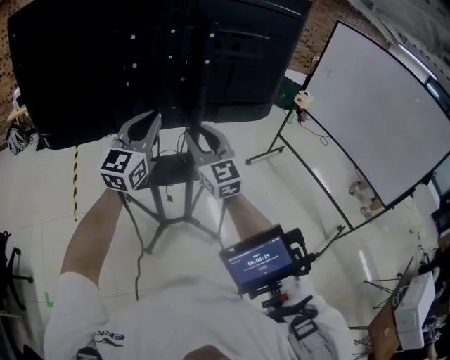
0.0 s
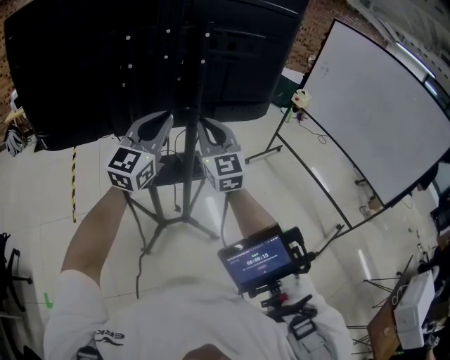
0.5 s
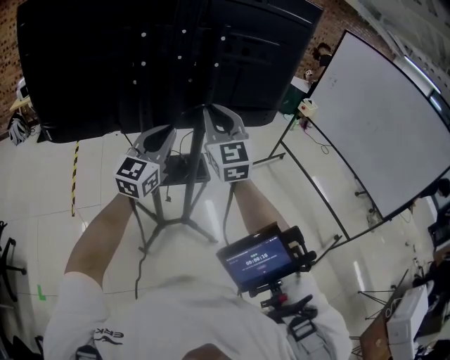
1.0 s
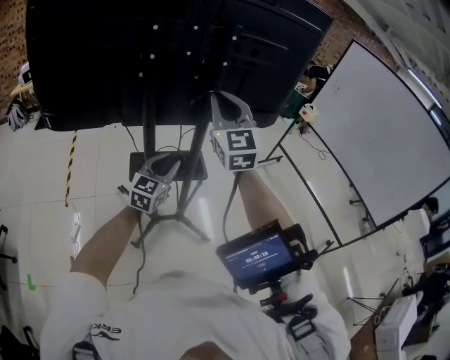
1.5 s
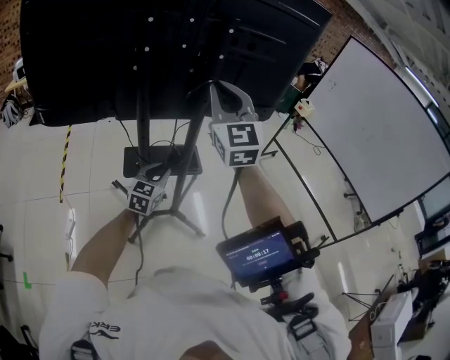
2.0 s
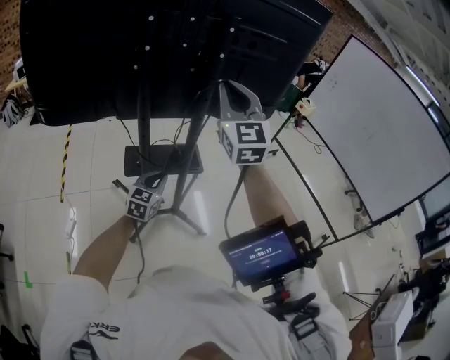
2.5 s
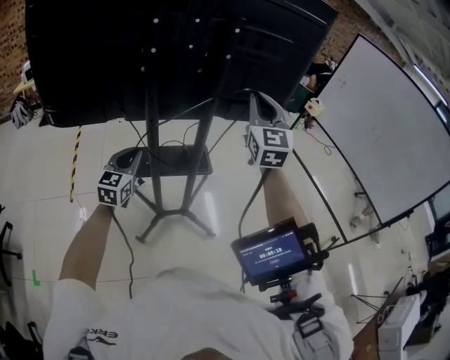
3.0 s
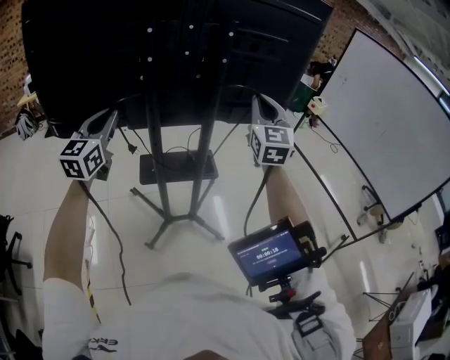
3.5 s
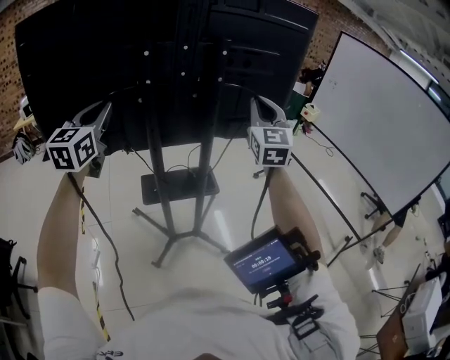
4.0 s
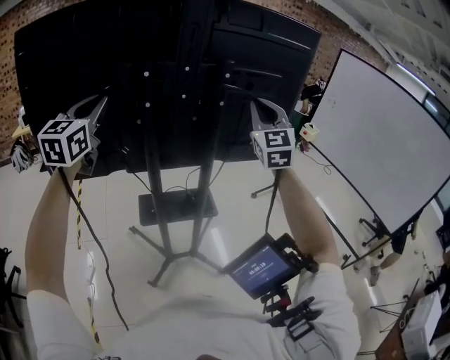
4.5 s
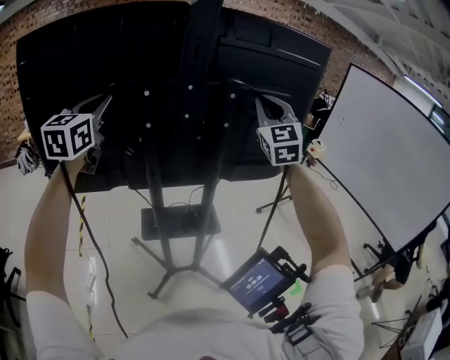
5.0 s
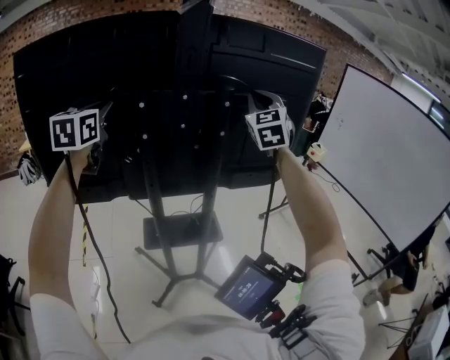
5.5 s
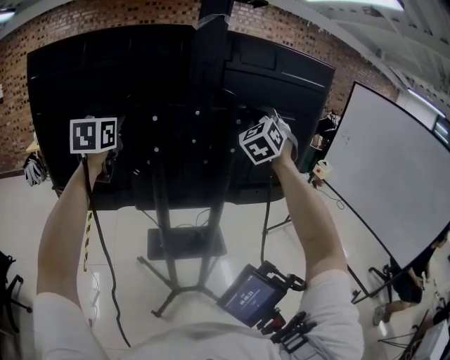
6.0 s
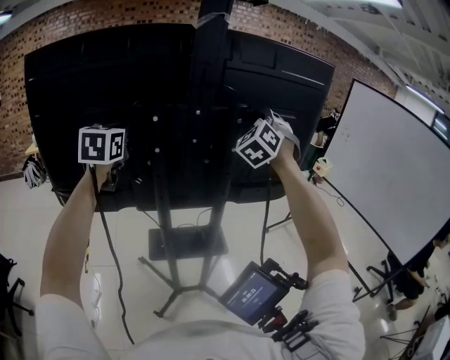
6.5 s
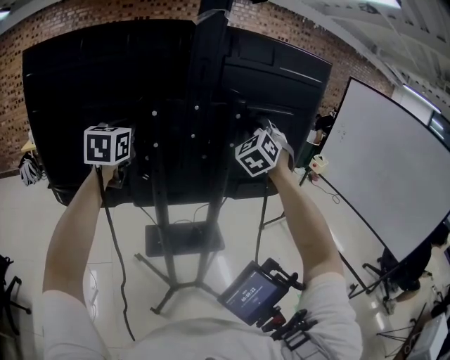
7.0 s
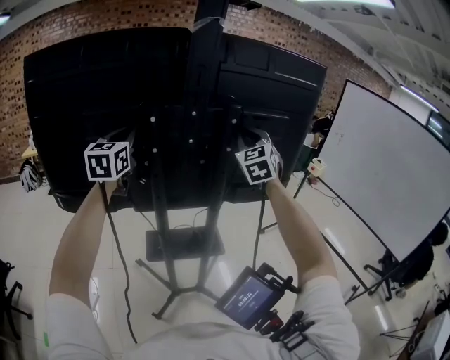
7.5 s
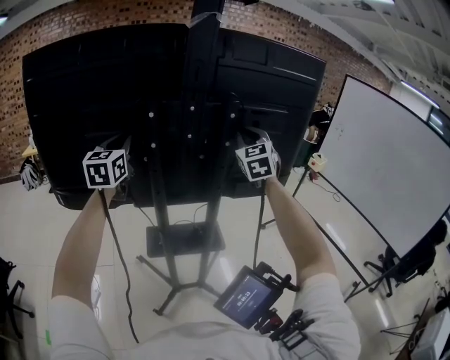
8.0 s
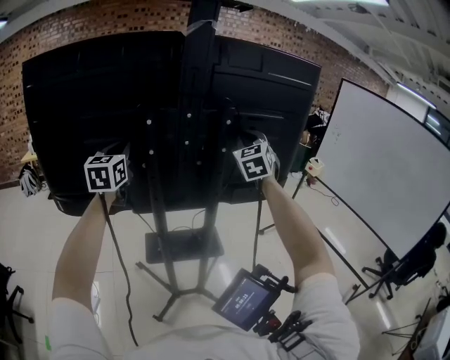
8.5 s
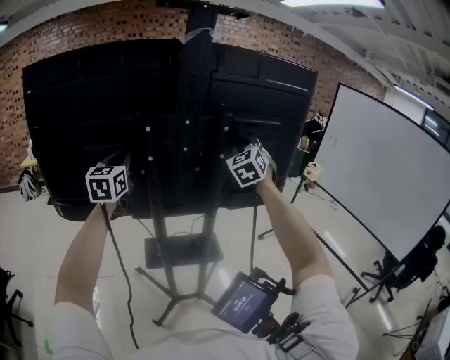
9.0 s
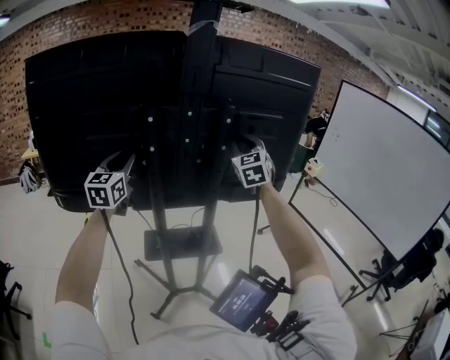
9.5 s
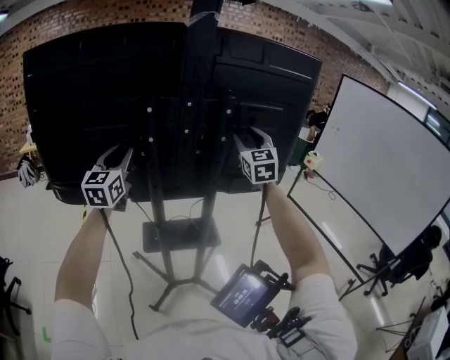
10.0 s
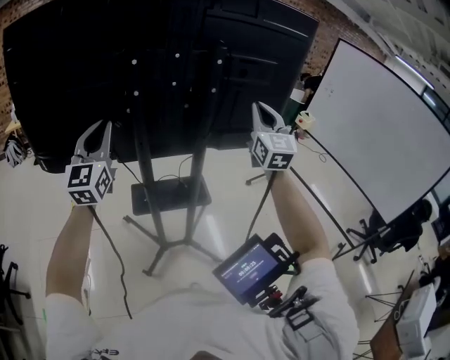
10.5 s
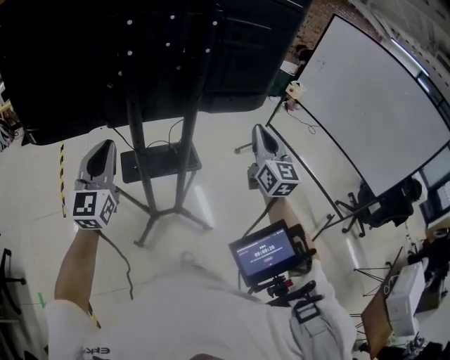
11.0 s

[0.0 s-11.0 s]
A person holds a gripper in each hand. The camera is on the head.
0.0 to 2.0 s: The right gripper travels upward by roughly 10 cm, and closes up. The left gripper is displaced downward by roughly 30 cm, and swivels about 30 degrees.
2.0 to 3.5 s: The right gripper shifts approximately 10 cm to the right. Meanwhile the left gripper goes approximately 30 cm upward and to the left, and changes its angle by roughly 20 degrees.
3.5 to 5.5 s: The right gripper goes approximately 20 cm forward and upward. The left gripper goes some 20 cm upward and forward.
5.5 to 7.5 s: The left gripper shifts by roughly 5 cm. Meanwhile the right gripper goes some 10 cm downward.
7.5 to 9.0 s: The grippers stay close to where they were, moving slightly.
9.0 to 11.0 s: The right gripper travels backward, downward and to the right by about 30 cm, rolls clockwise, seen from behind, by roughly 40 degrees, and opens, then closes once more. Meanwhile the left gripper shifts approximately 25 cm backward and downward.

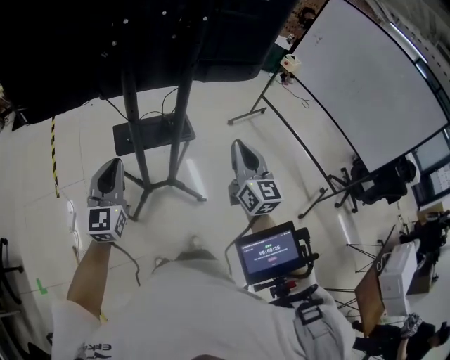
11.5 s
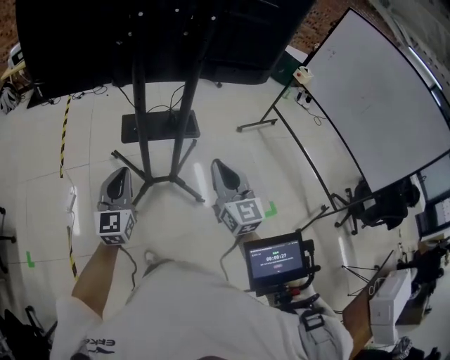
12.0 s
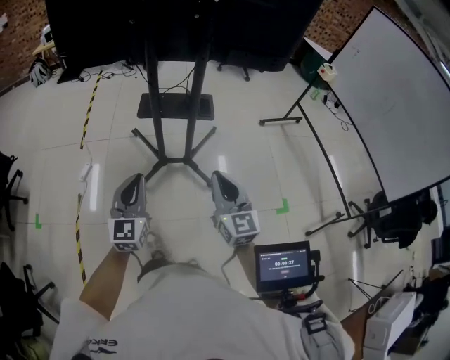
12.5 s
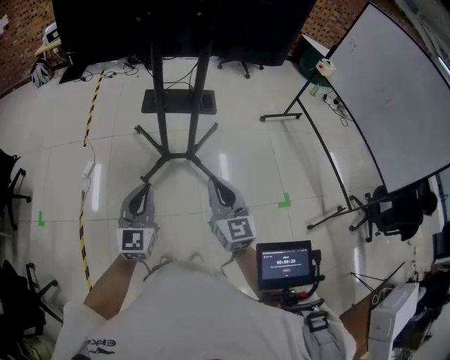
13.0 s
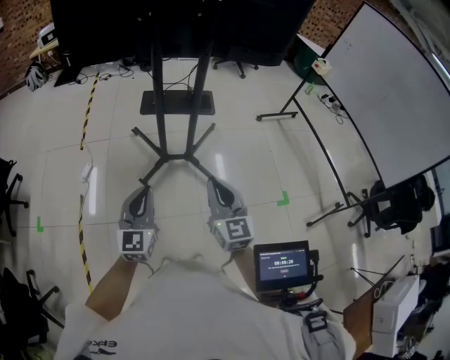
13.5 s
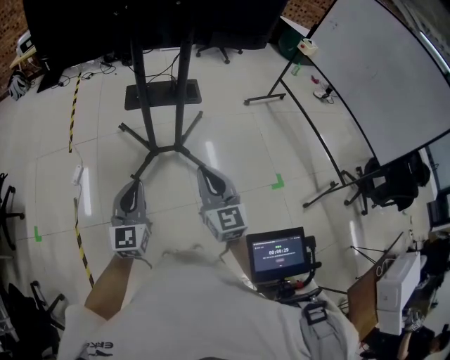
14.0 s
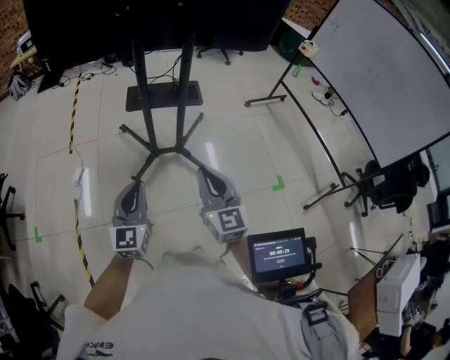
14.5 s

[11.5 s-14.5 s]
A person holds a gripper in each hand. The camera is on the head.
11.5 to 13.0 s: The grippers both shift backward by roughly 25 cm.
13.0 to 14.5 s: The grippers move only a little.

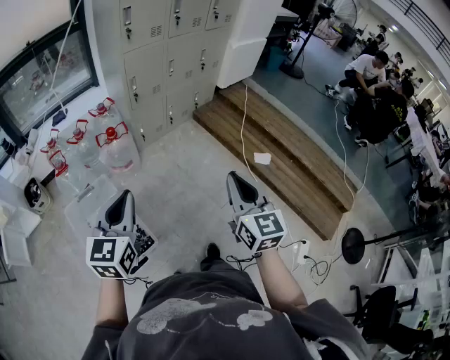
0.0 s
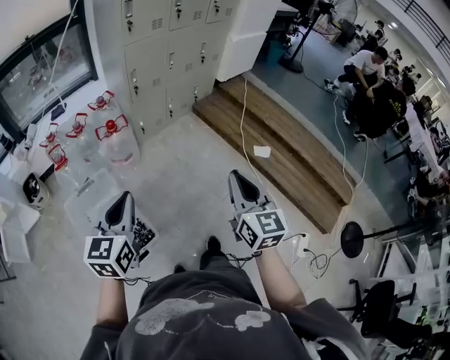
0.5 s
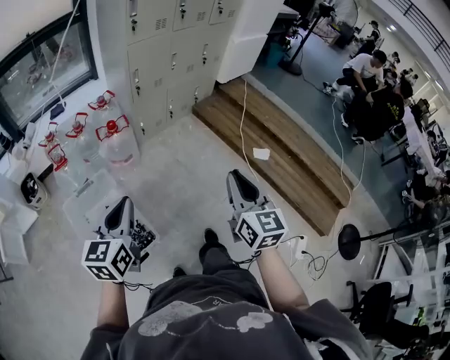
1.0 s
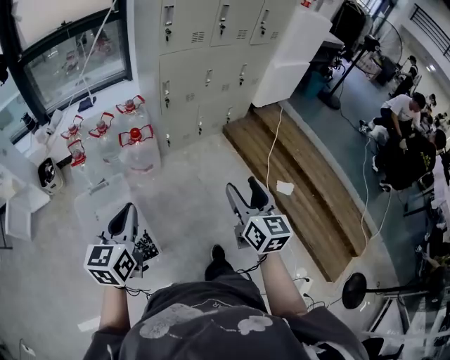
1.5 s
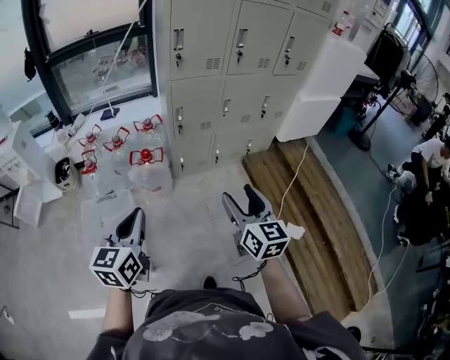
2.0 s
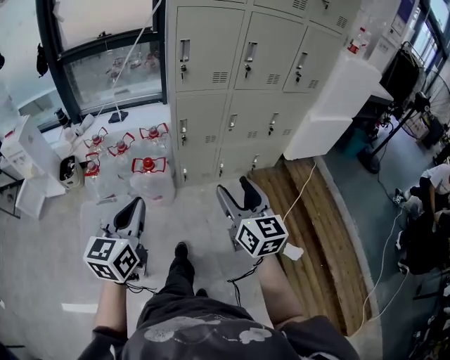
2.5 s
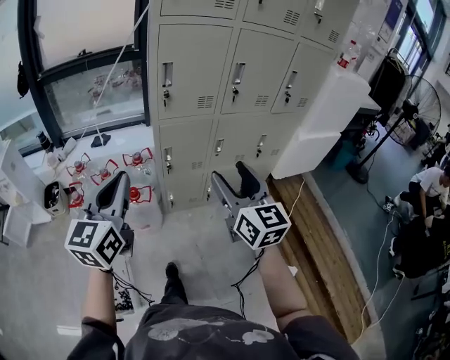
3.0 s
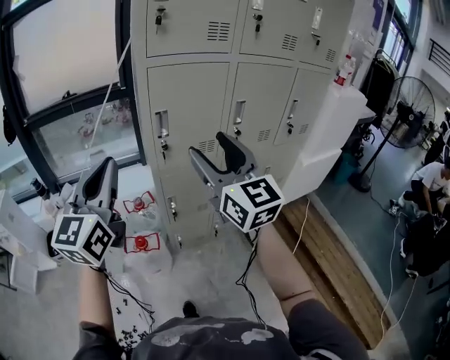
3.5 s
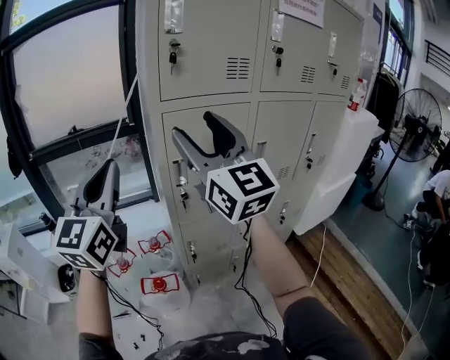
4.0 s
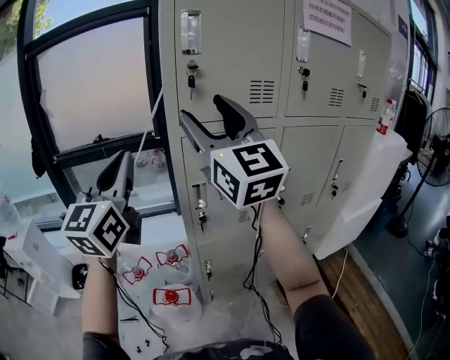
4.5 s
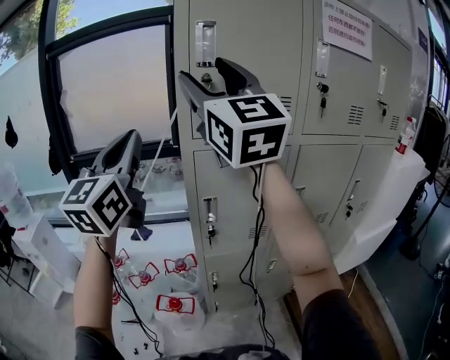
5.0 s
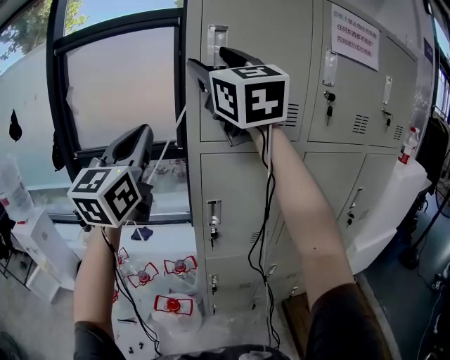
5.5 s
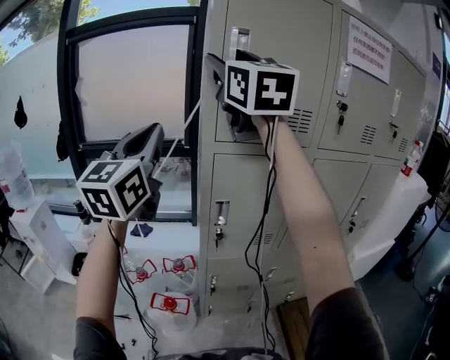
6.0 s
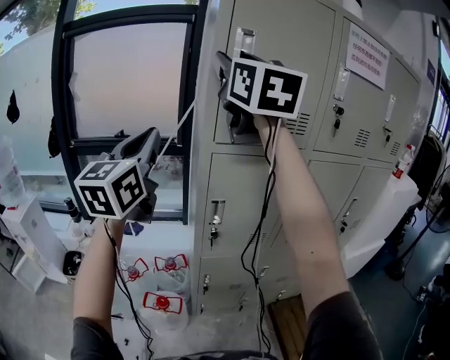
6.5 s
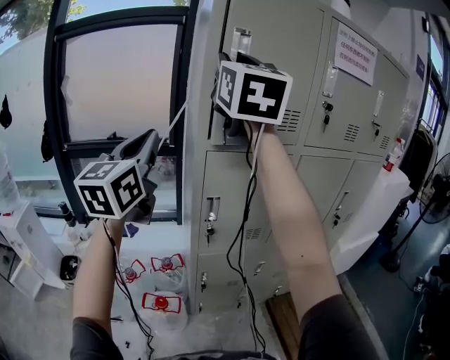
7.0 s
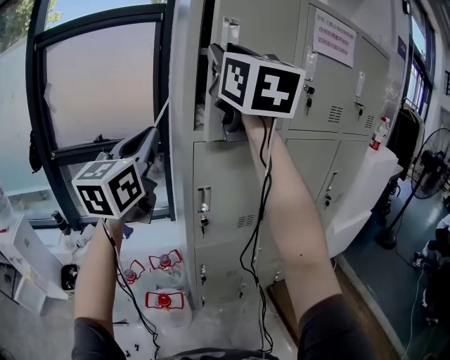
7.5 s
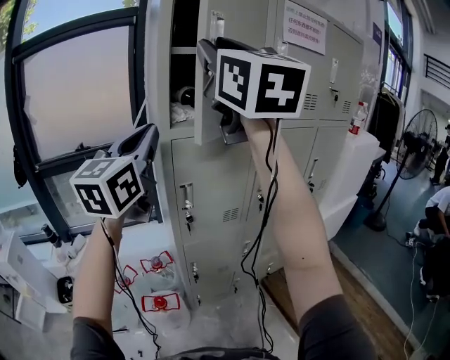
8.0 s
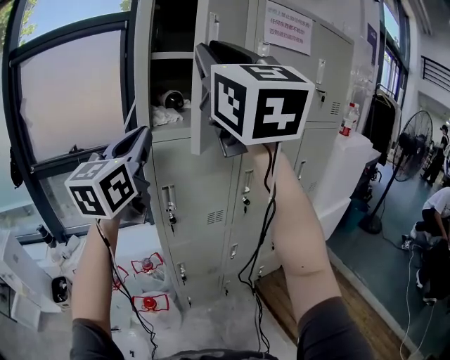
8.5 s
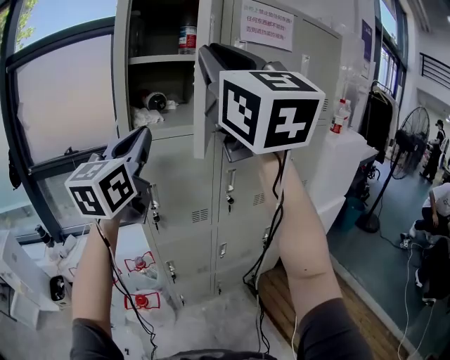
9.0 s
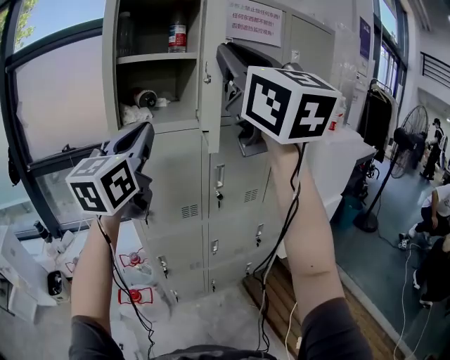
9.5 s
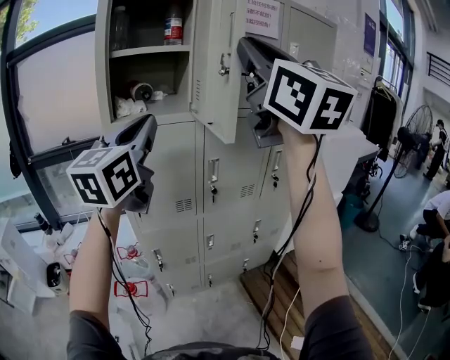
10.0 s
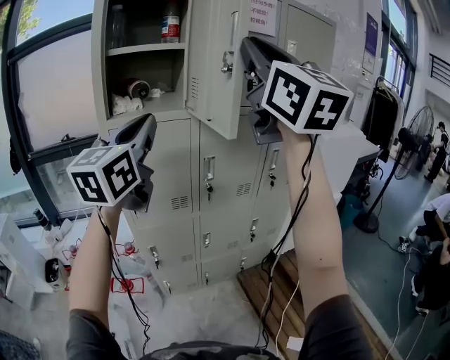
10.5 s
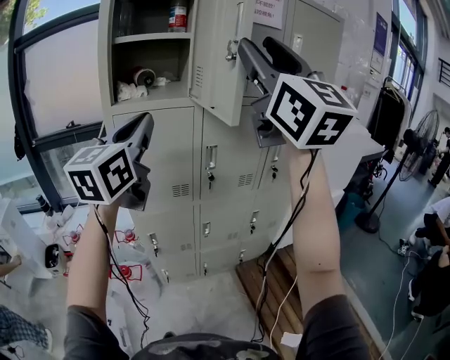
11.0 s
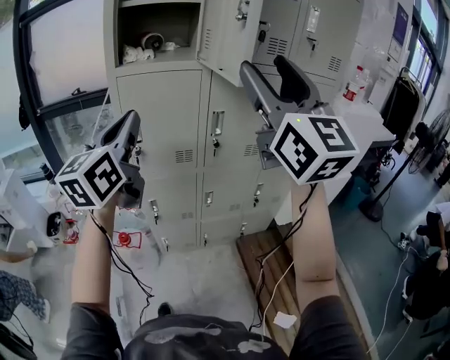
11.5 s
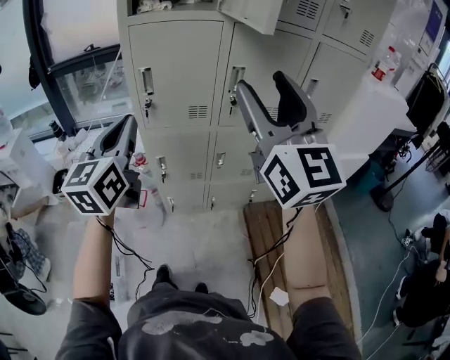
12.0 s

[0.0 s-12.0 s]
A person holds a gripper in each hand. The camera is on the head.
0.0 to 2.0 s: The right gripper goes about 30 cm forward, changes its angle by approximately 30 degrees, and opens, while the left gripper heads forward, covering about 15 cm, and changes its angle by roughly 20 degrees.
2.0 to 4.0 s: The pair of grippers is taken forward, approximately 50 cm. The two grippers go roughly 35 cm upward. The right gripper tips its fingers upward by about 30 degrees. The left gripper points its fingers some 30 degrees further upward.
4.0 to 6.0 s: The right gripper travels upward and forward by roughly 25 cm; the left gripper travels upward and forward by some 15 cm.
6.0 to 8.0 s: The left gripper goes some 5 cm to the right; the right gripper goes approximately 15 cm backward and to the right, and closes.
8.0 to 10.0 s: The two grippers go roughly 20 cm to the right.
10.0 to 12.0 s: Both grippers travel together downward, some 25 cm. The right gripper opens, while the left gripper turns by some 20 degrees.
